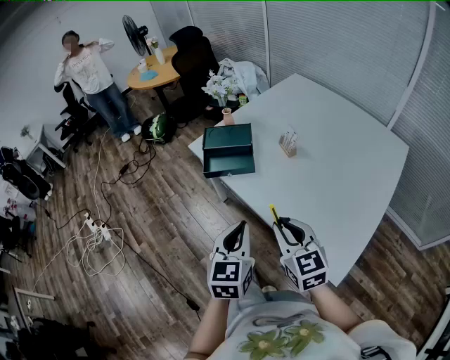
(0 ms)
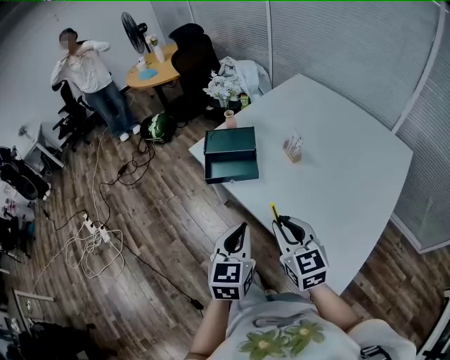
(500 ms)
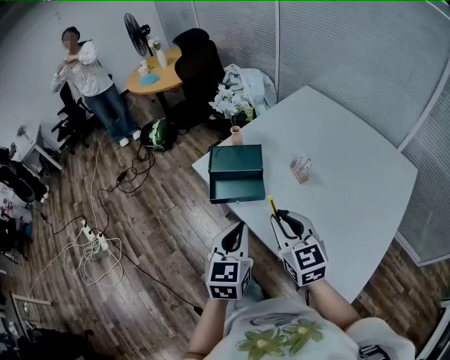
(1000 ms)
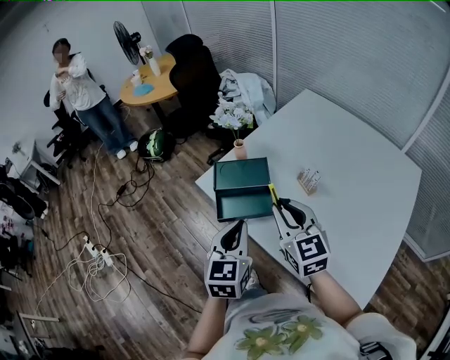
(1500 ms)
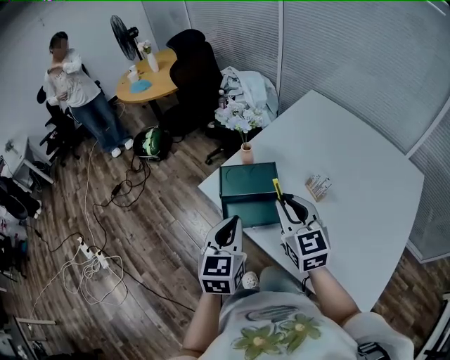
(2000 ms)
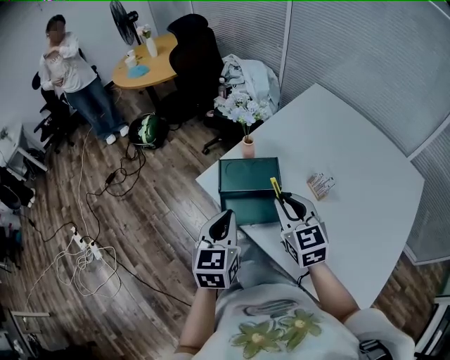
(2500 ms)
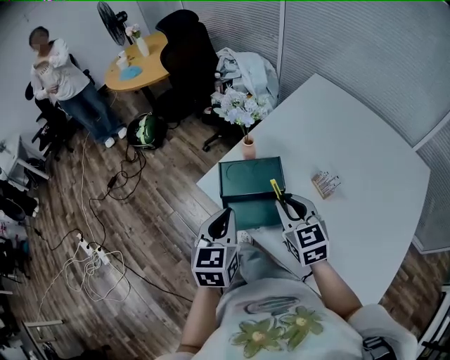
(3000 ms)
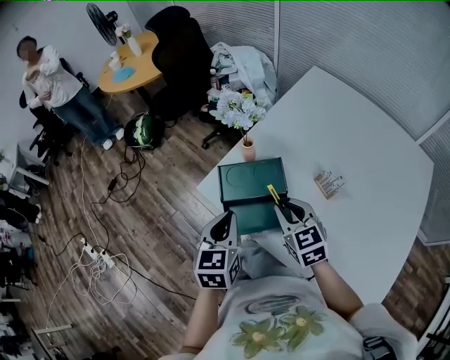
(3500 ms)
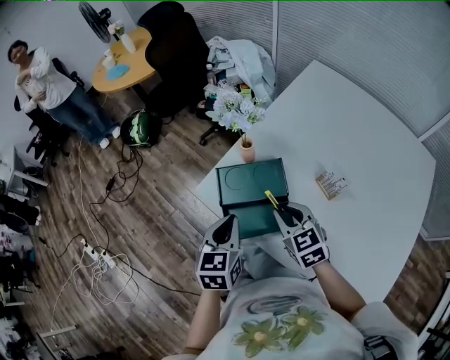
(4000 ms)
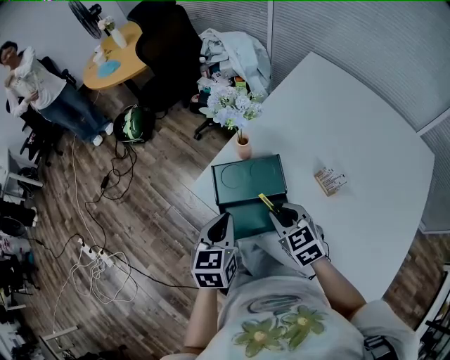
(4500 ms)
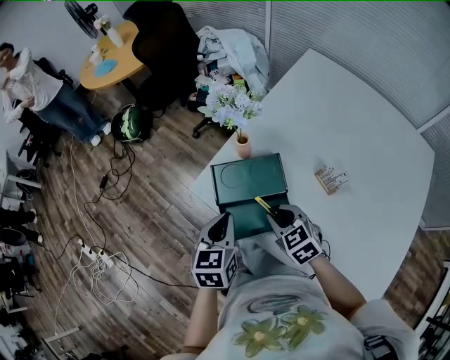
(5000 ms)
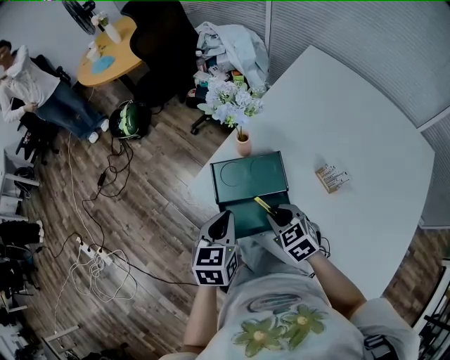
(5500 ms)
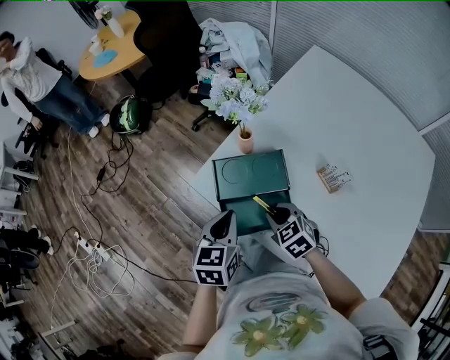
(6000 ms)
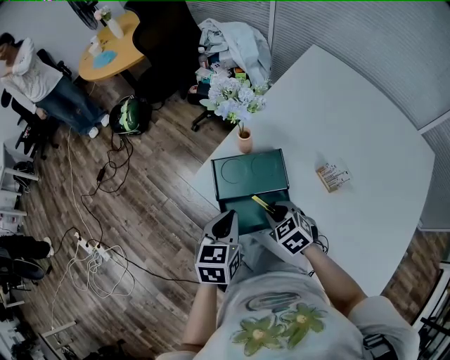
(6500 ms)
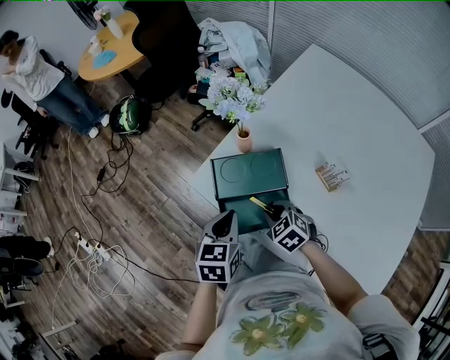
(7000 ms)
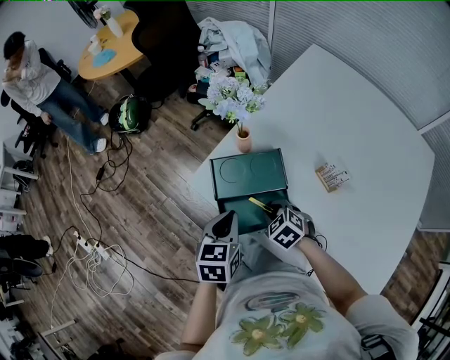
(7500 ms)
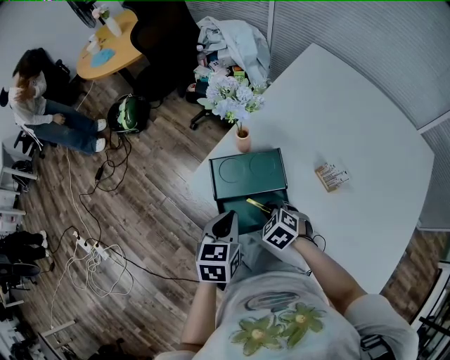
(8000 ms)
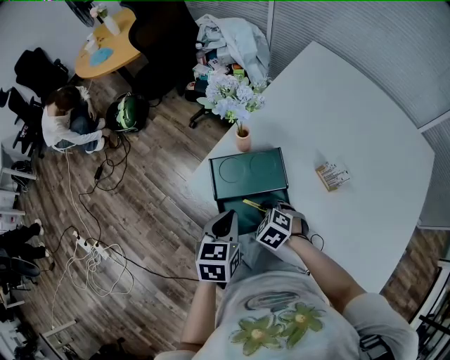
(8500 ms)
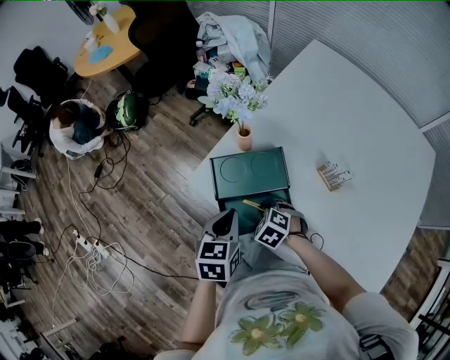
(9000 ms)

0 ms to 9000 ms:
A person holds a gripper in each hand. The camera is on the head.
0 ms to 2000 ms: The left gripper heads forward and to the left, covering some 30 cm. Meanwhile the right gripper is displaced forward by approximately 35 cm.
2000 ms to 4500 ms: The right gripper travels downward and forward by approximately 20 cm, and rotates approximately 30 degrees. Meanwhile the left gripper is displaced forward and downward by about 20 cm.
4500 ms to 7000 ms: The right gripper heads downward, covering roughly 10 cm, and rotates approximately 20 degrees.
7000 ms to 9000 ms: The right gripper travels downward by some 5 cm.

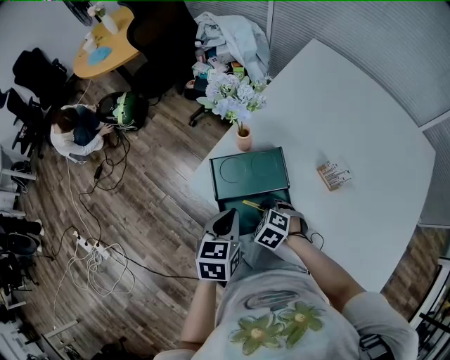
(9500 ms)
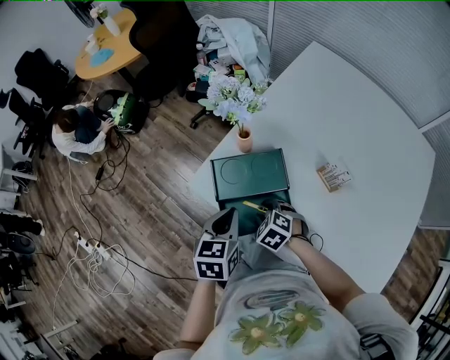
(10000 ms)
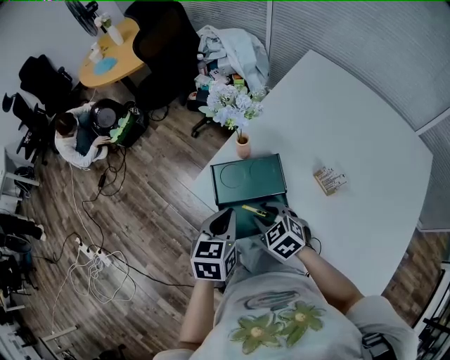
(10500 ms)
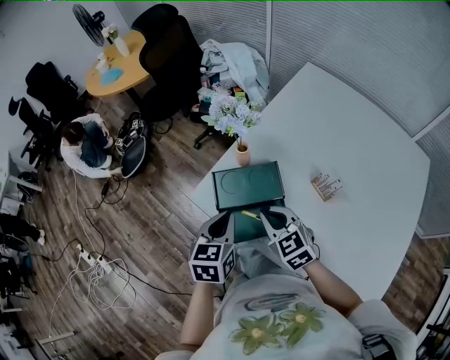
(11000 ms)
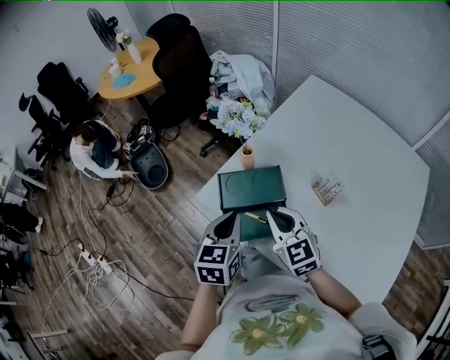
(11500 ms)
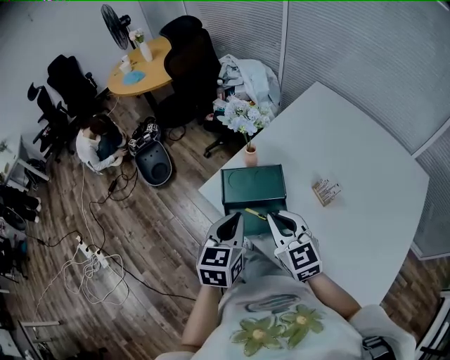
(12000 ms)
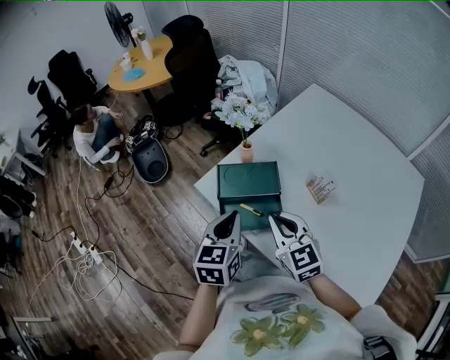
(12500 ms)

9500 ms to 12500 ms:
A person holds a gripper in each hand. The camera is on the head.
9500 ms to 11000 ms: The left gripper moves upward, about 5 cm; the right gripper shifts roughly 20 cm upward, and tilts its fingers roughly 40 degrees upward.
11000 ms to 12500 ms: The grippers both shift backward and upward by approximately 10 cm.

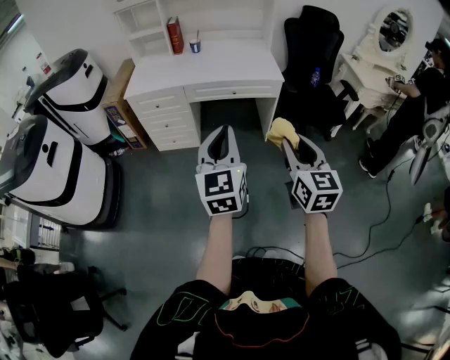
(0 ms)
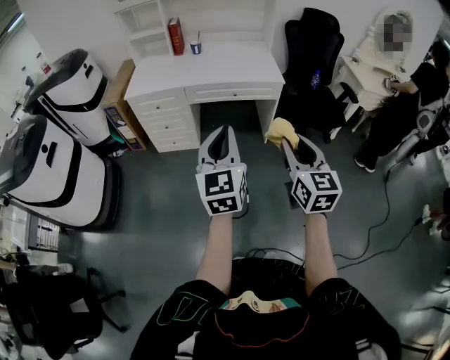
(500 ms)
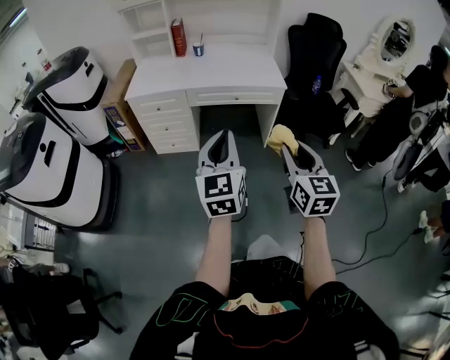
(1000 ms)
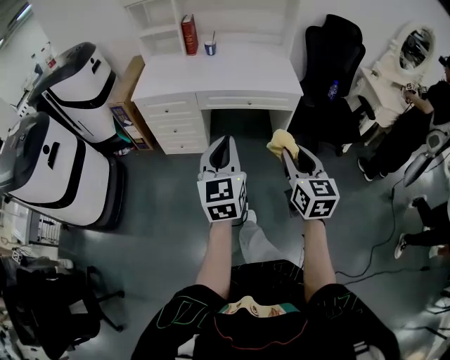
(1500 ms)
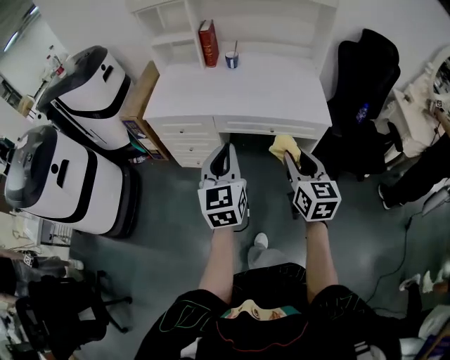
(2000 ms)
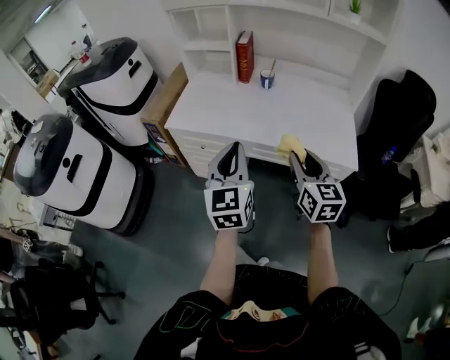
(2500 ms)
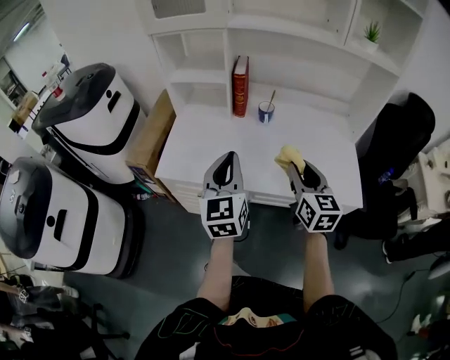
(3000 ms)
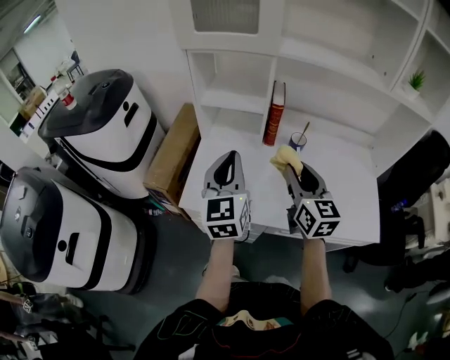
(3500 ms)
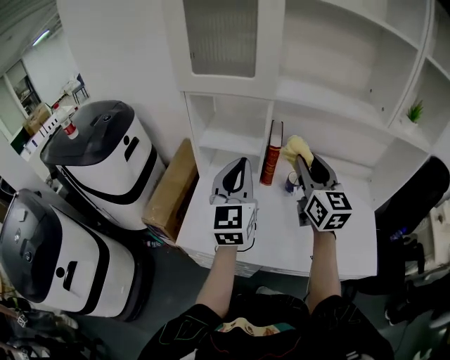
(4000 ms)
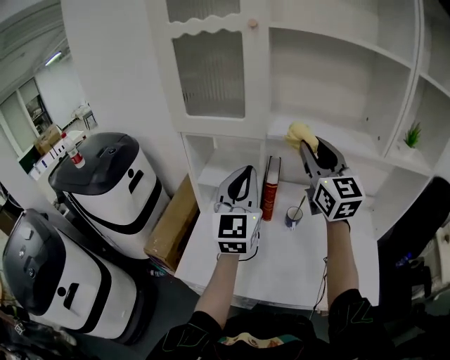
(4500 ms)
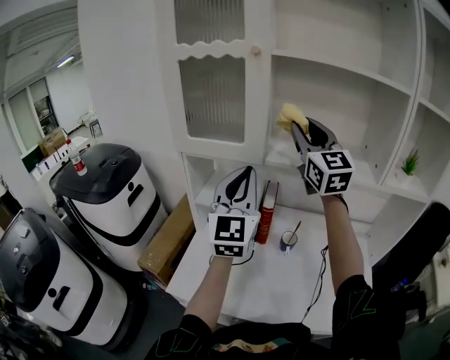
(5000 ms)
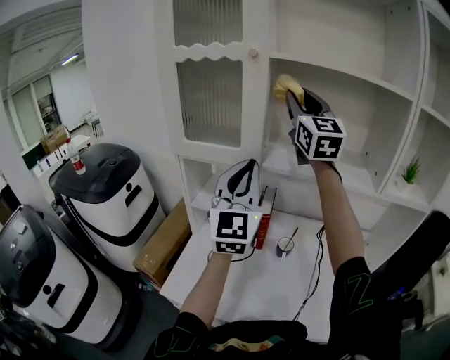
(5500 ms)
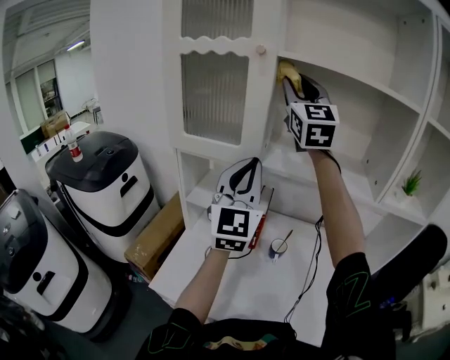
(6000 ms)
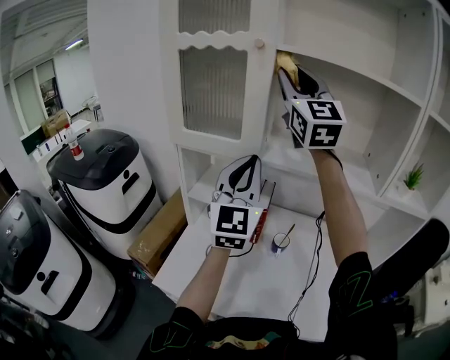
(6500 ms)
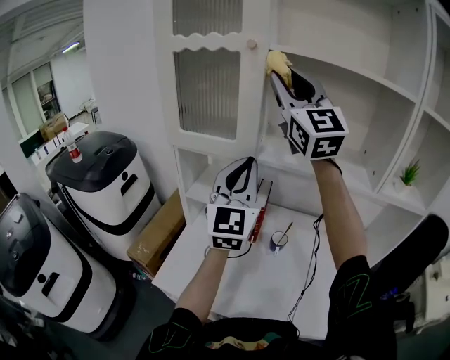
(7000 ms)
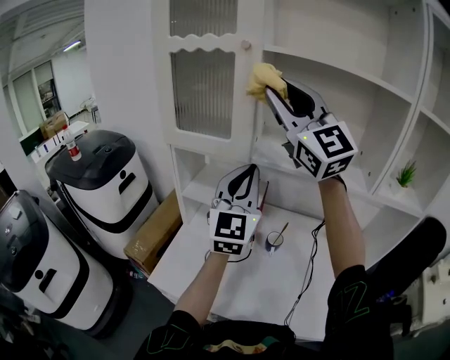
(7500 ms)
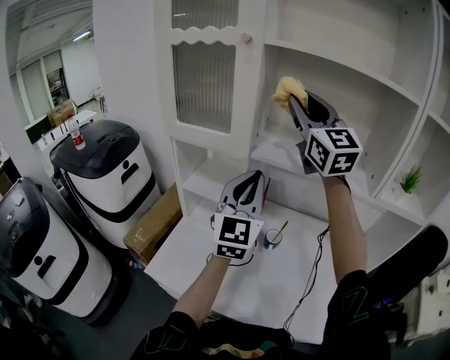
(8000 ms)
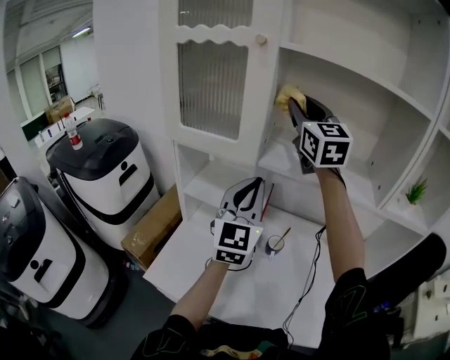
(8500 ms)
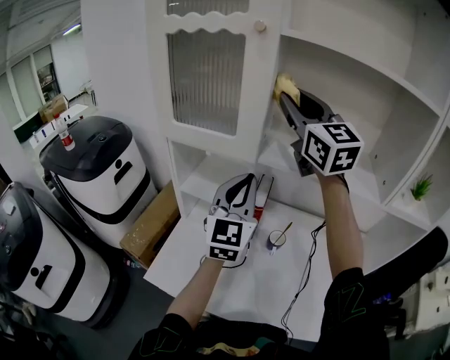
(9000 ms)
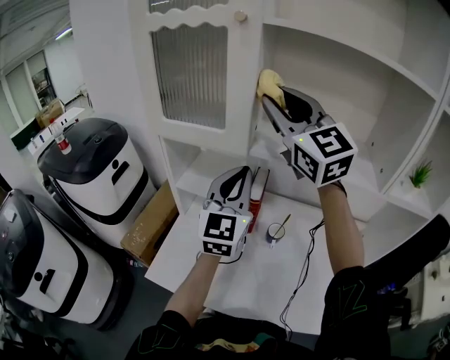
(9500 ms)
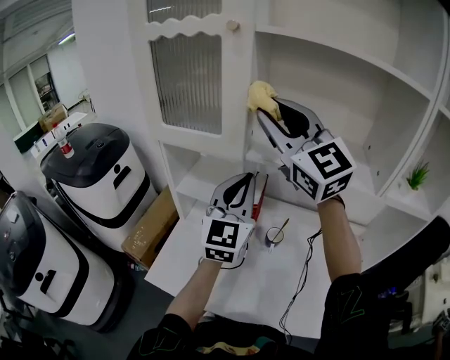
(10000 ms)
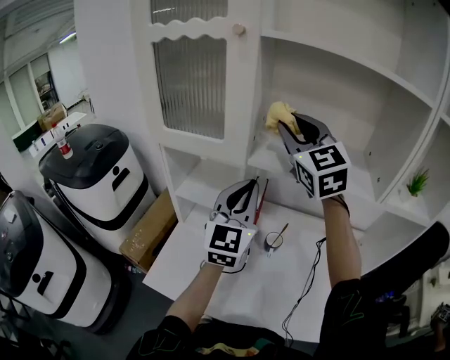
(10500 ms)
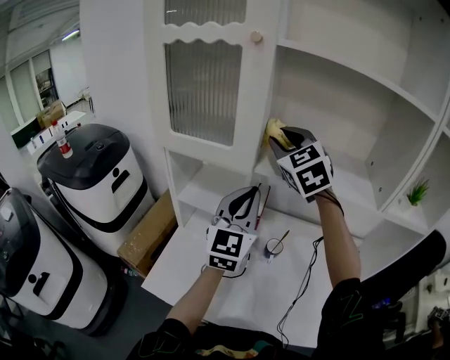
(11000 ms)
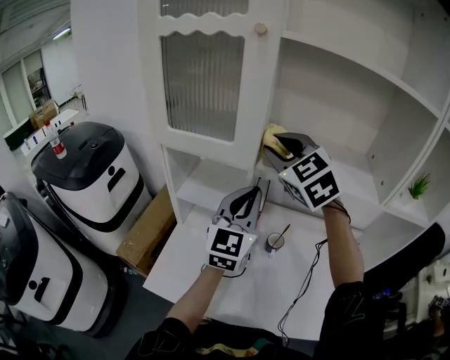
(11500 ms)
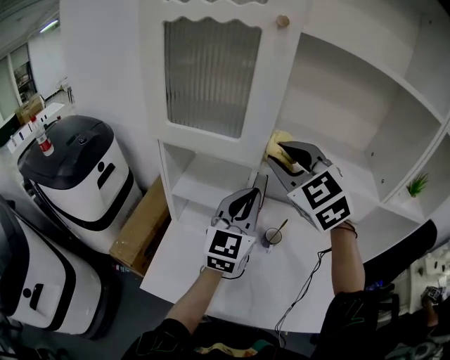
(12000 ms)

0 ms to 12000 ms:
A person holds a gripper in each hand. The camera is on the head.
0 ms to 2000 ms: The grippers both shift forward by some 30 cm.
2000 ms to 4000 ms: The two grippers travel together, forward, some 60 cm.
4000 ms to 6000 ms: The right gripper goes approximately 40 cm upward and forward, and turns by about 30 degrees; the left gripper heads upward, forward and to the right, covering about 20 cm.
6000 ms to 8000 ms: Both grippers travel together downward, some 5 cm.
8000 ms to 10000 ms: The right gripper is displaced to the left by approximately 5 cm, and goes forward and returns, some 5 cm each way.
10000 ms to 12000 ms: The right gripper travels downward by some 10 cm, and angles its fingers downward, by approximately 30 degrees; the left gripper moves approximately 5 cm.

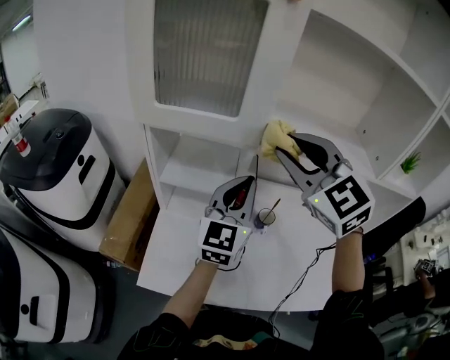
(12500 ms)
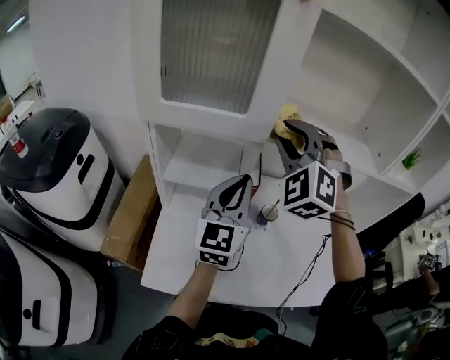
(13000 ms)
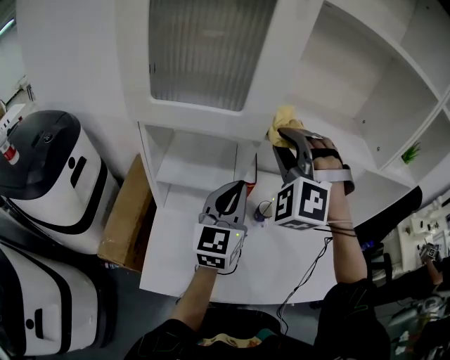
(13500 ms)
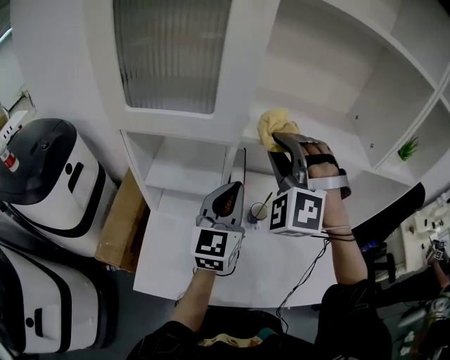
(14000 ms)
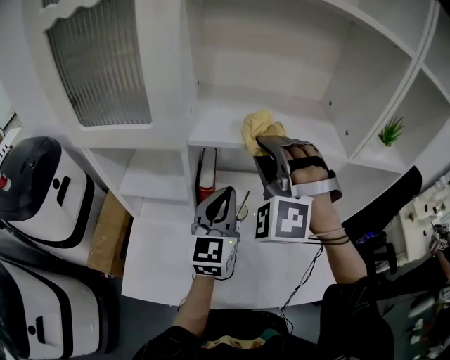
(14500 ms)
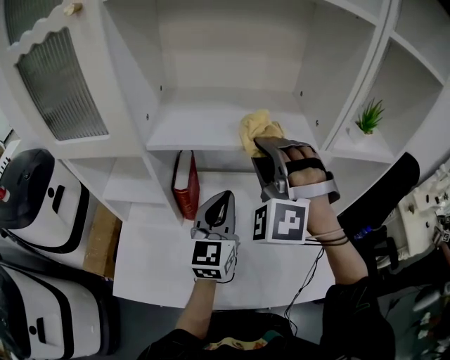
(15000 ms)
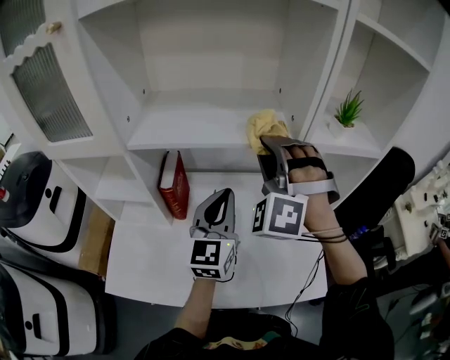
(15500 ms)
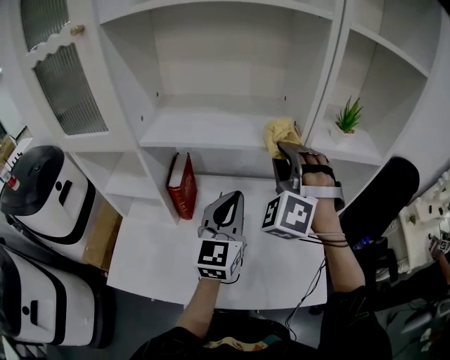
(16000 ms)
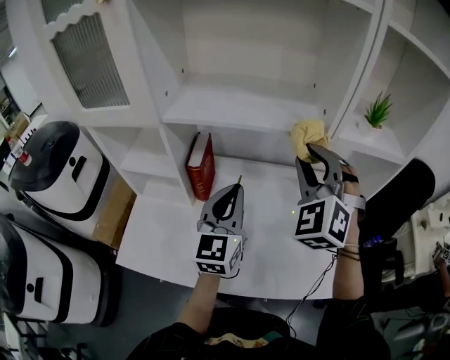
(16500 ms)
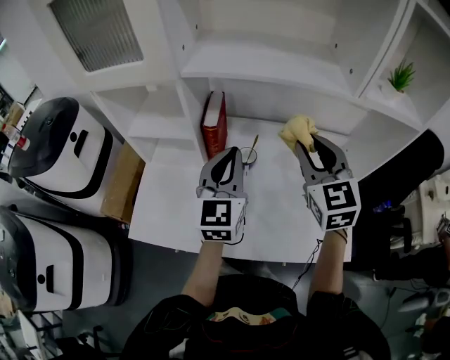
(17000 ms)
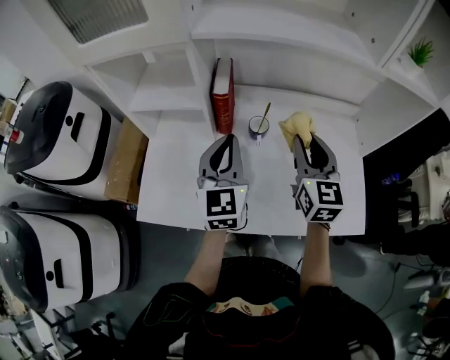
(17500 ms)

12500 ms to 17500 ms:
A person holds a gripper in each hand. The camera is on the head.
12500 ms to 15000 ms: The grippers both shift to the right by about 20 cm. The right gripper swivels some 50 degrees.
15000 ms to 17500 ms: The right gripper is displaced downward and backward by some 20 cm, and twists roughly 80 degrees clockwise, seen from behind; the left gripper shifts roughly 15 cm to the left, backward and downward.
